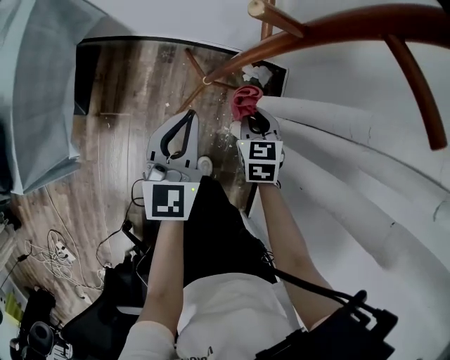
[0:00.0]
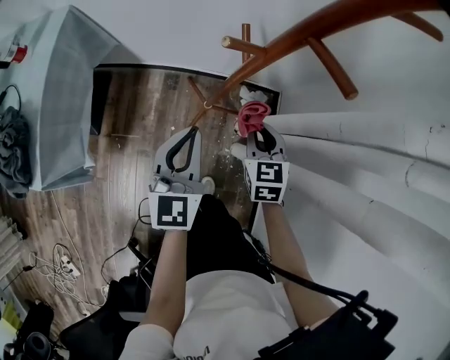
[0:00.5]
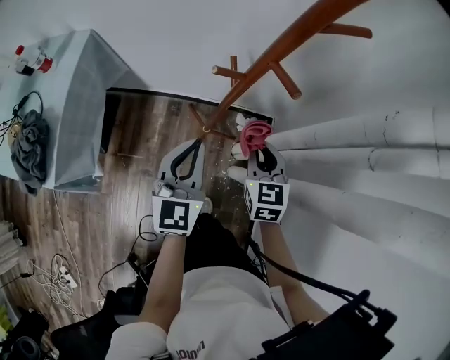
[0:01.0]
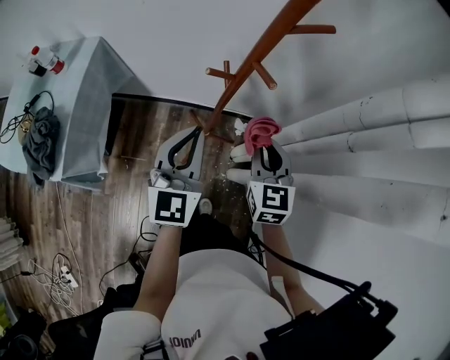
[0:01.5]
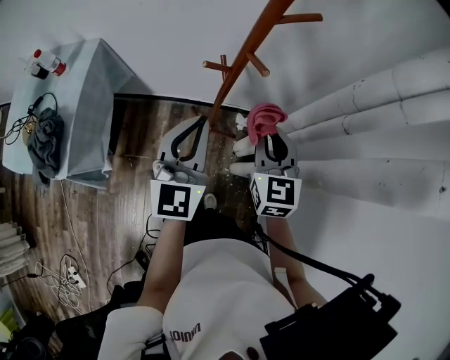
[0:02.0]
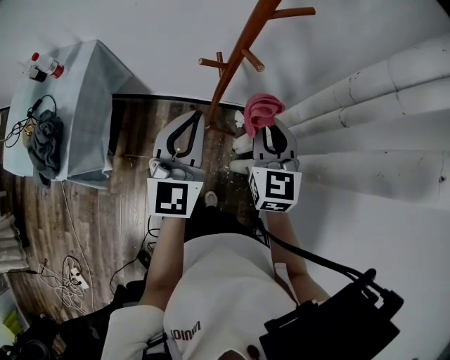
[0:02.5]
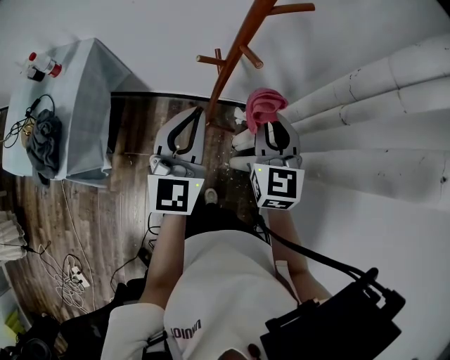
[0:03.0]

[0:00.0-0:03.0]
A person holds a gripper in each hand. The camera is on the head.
0:00.0 to 0:01.5: Both grippers move upward, some 25 cm. The left gripper changes its angle by roughly 20 degrees. The right gripper turns by approximately 30 degrees.
0:01.5 to 0:03.0: The right gripper moves upward, about 5 cm.

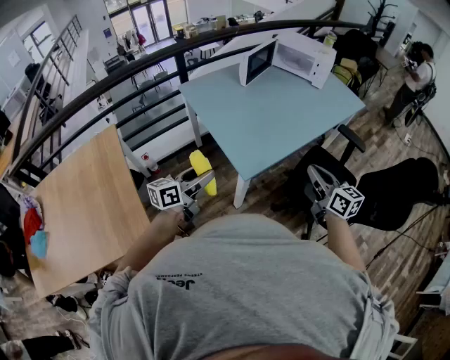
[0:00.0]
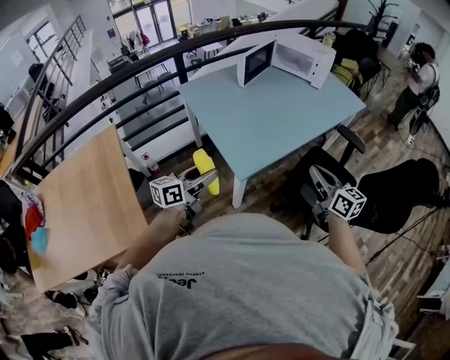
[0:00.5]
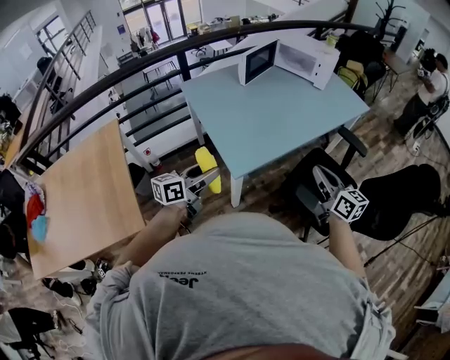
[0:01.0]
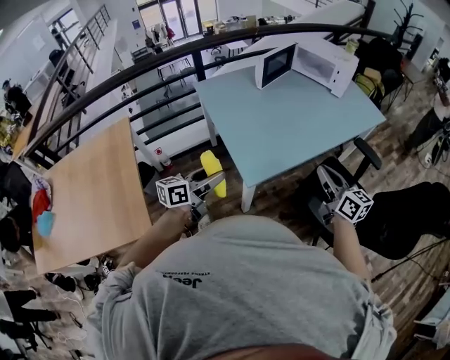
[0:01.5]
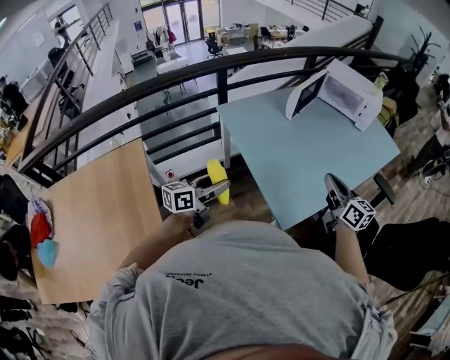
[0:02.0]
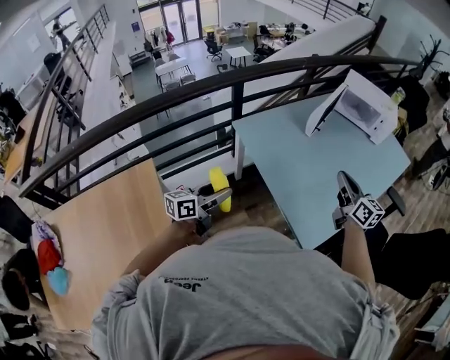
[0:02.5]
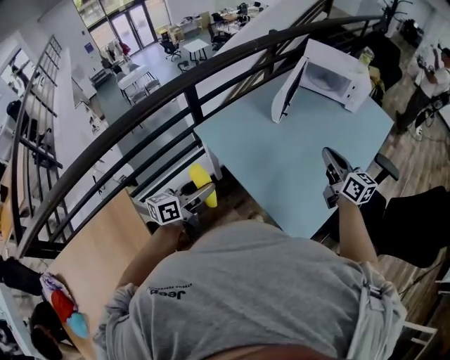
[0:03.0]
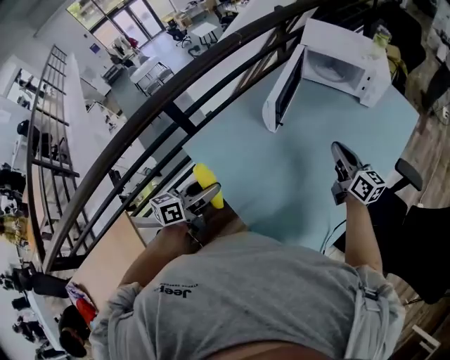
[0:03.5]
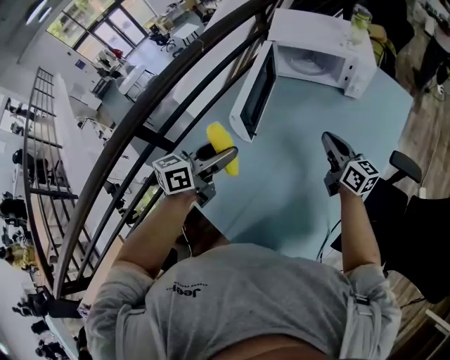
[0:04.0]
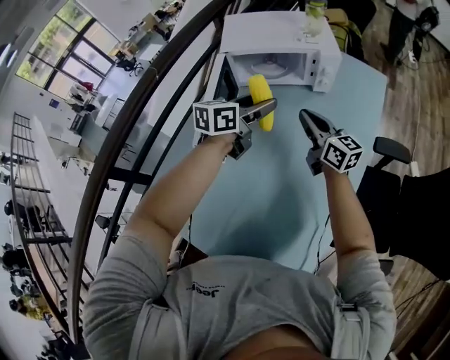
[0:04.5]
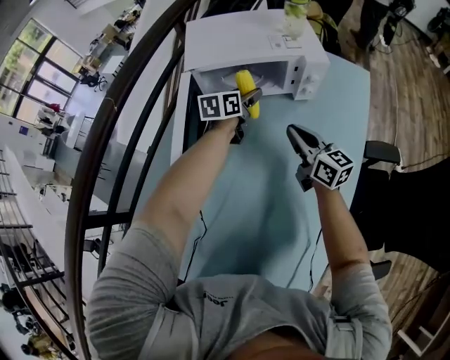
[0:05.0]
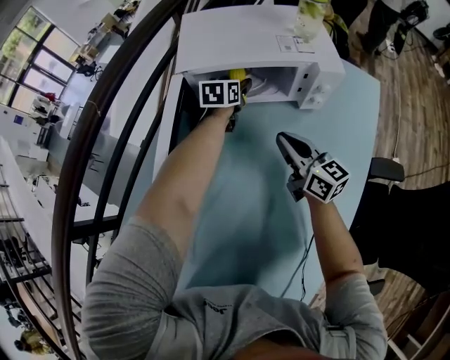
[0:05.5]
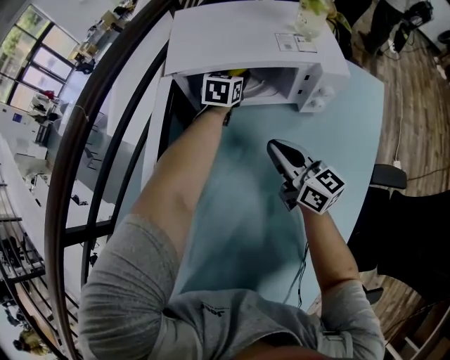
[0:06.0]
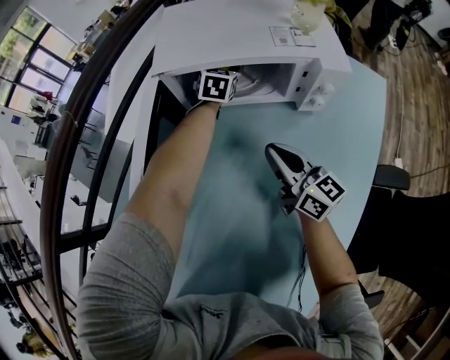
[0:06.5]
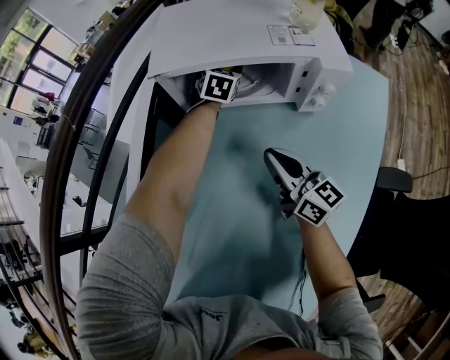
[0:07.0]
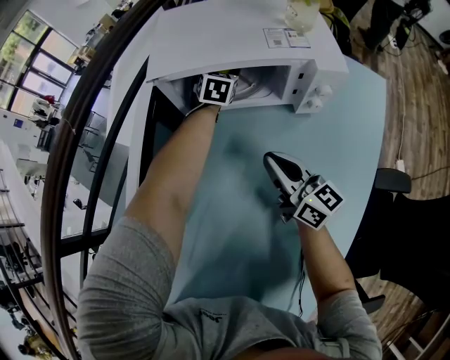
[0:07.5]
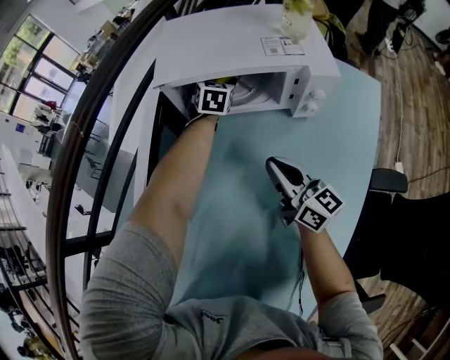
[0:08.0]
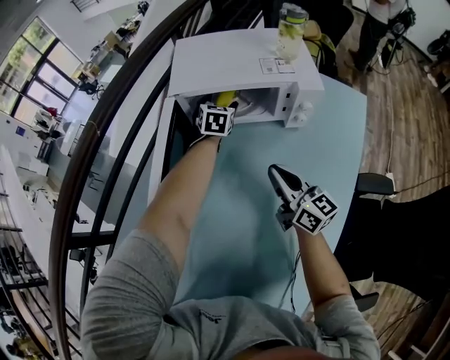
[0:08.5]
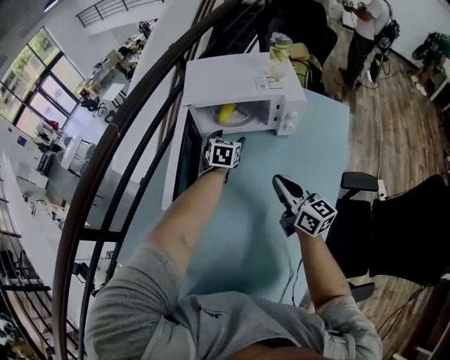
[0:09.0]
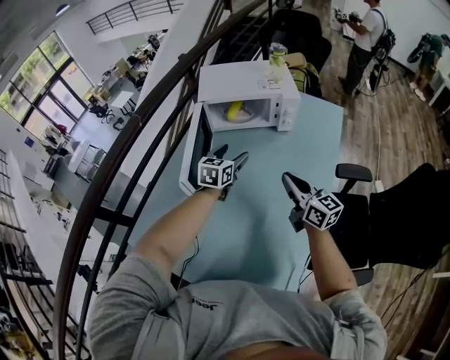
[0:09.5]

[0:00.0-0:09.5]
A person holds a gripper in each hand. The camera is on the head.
0:00.0 to 0:02.0: The grippers both shift forward and to the left by about 20 cm.
0:02.0 to 0:04.0: The pair of grippers is taken forward, about 40 cm. The left gripper changes its angle by about 20 degrees.
0:04.0 to 0:05.5: The left gripper is displaced forward and downward by approximately 50 cm, and changes its angle by some 20 degrees; the right gripper moves forward, about 15 cm.
0:05.5 to 0:07.5: The left gripper is displaced forward by about 10 cm, and swivels about 30 degrees.
0:07.5 to 0:09.5: The left gripper travels backward by approximately 35 cm, and swivels approximately 20 degrees; the right gripper goes about 25 cm backward and upward.

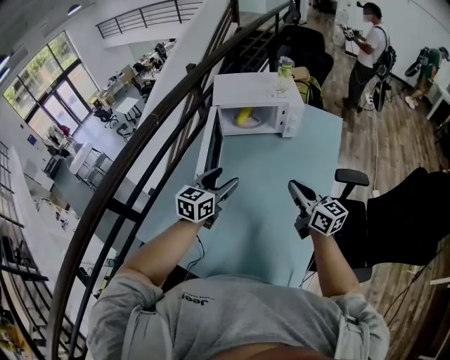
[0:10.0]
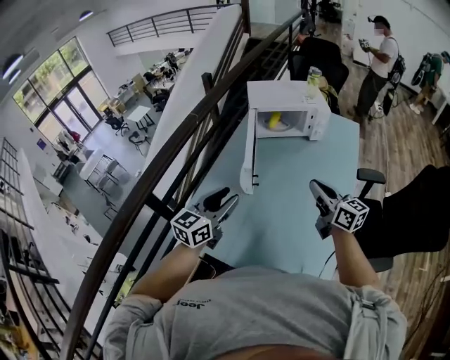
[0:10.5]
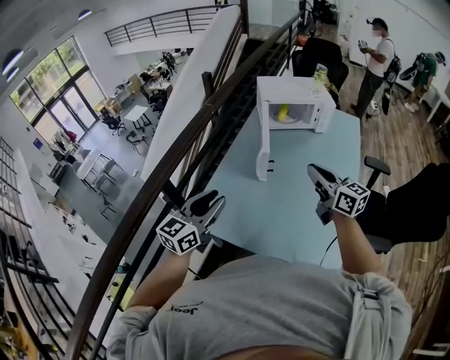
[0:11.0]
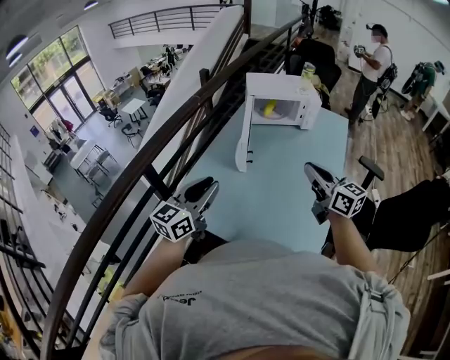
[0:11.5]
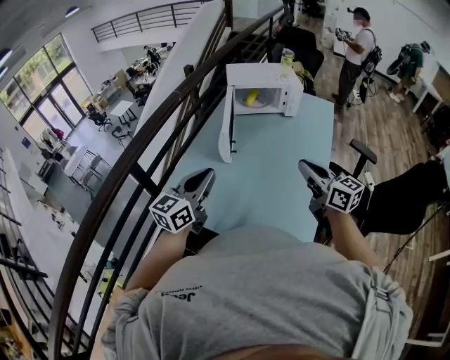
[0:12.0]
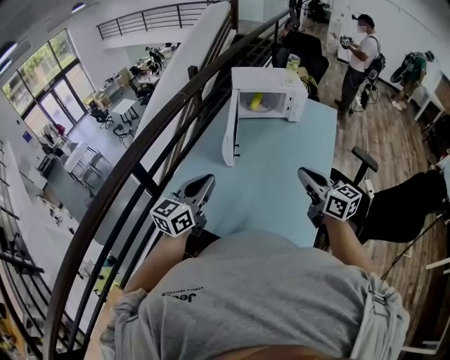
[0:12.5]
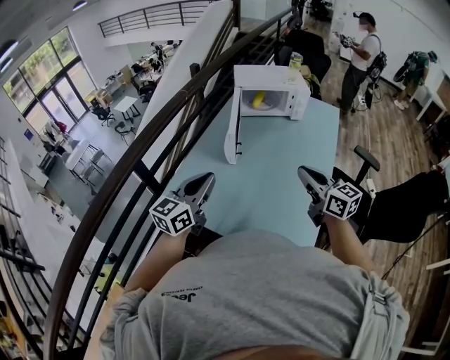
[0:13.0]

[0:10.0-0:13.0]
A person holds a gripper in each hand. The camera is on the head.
0:10.0 to 0:11.5: The right gripper travels backward, to the left and upward by some 20 cm; the left gripper heads backward, to the left and upward, covering roughly 30 cm, and closes its fingers.
0:11.5 to 0:13.0: The grippers move only a little.

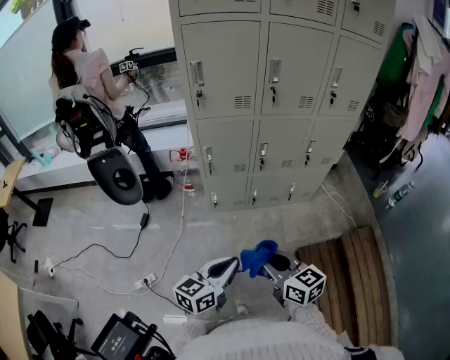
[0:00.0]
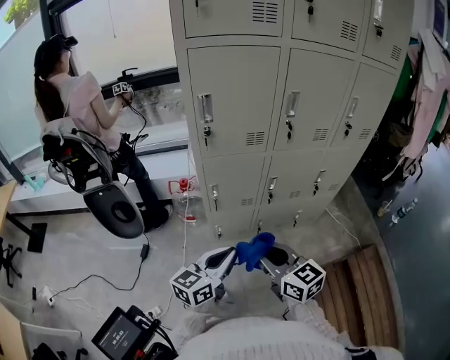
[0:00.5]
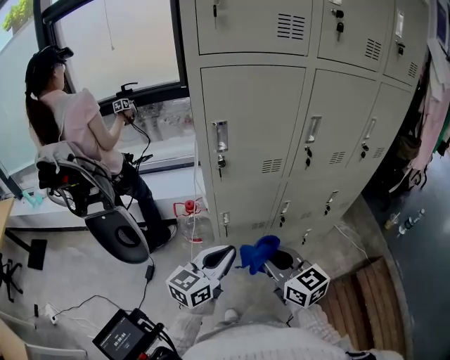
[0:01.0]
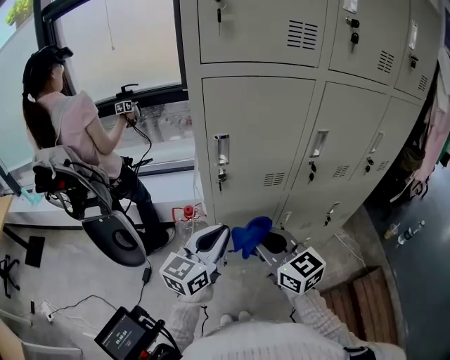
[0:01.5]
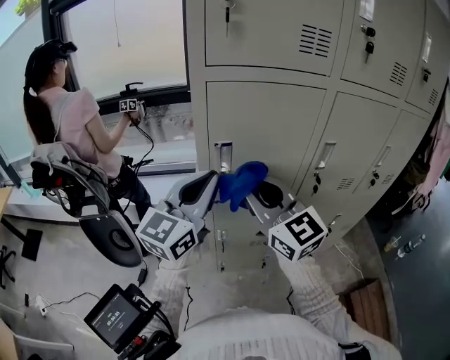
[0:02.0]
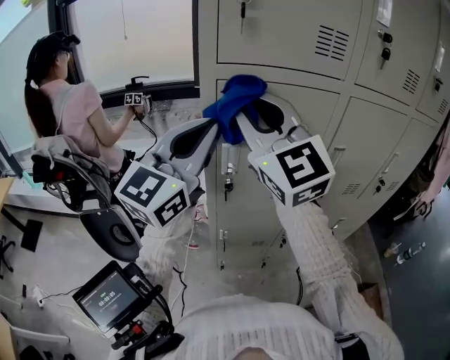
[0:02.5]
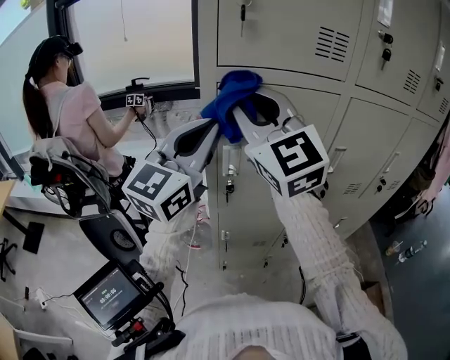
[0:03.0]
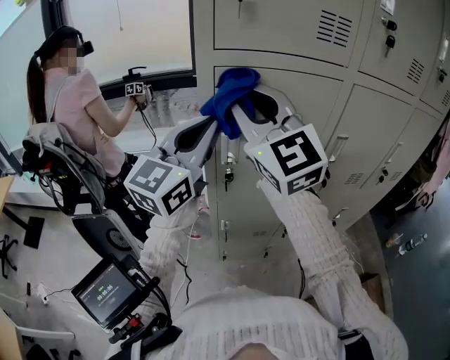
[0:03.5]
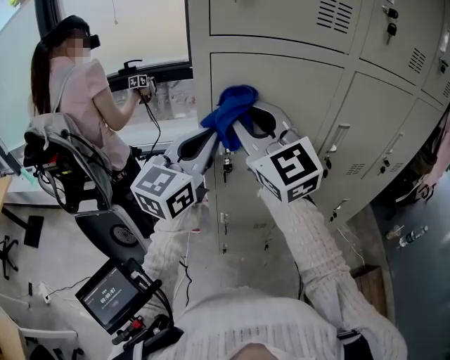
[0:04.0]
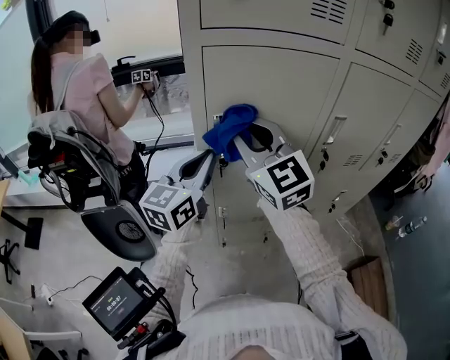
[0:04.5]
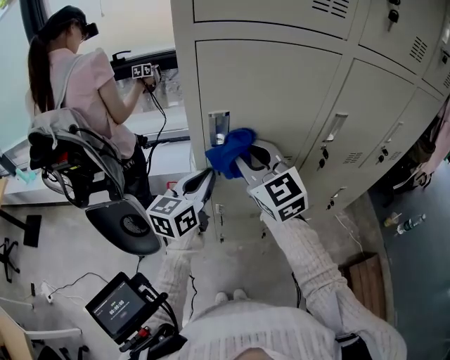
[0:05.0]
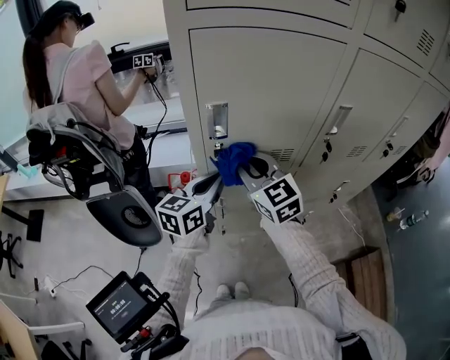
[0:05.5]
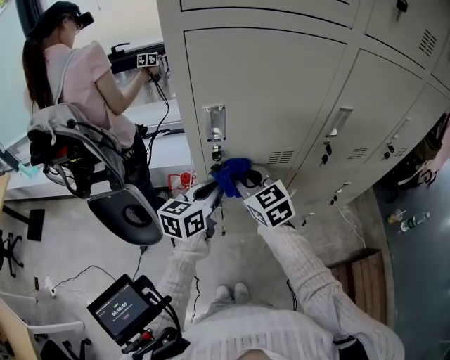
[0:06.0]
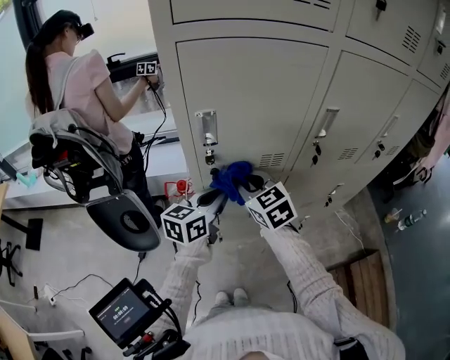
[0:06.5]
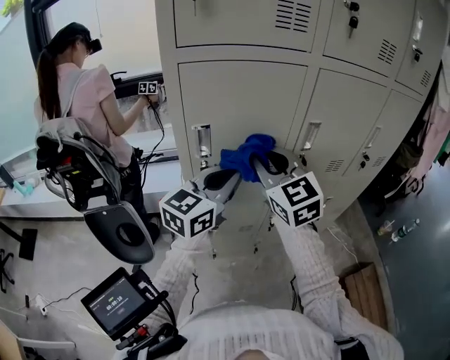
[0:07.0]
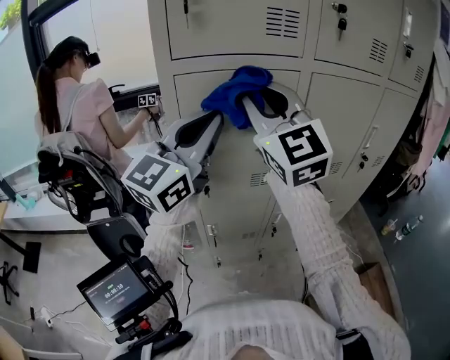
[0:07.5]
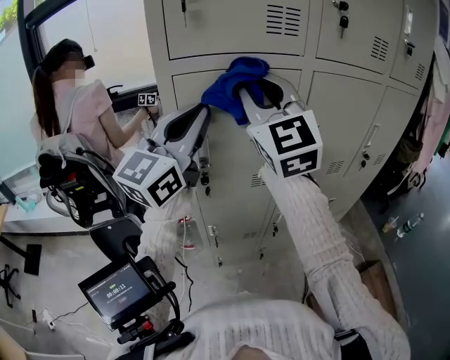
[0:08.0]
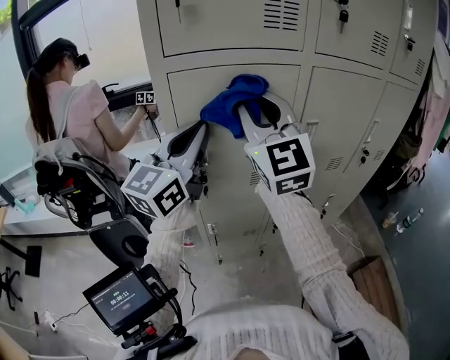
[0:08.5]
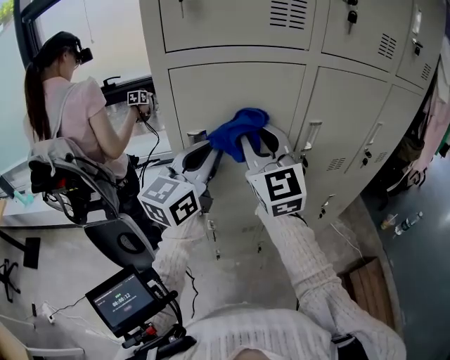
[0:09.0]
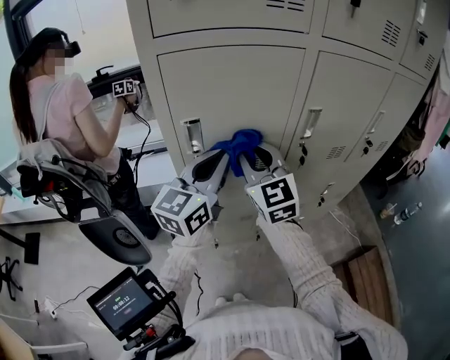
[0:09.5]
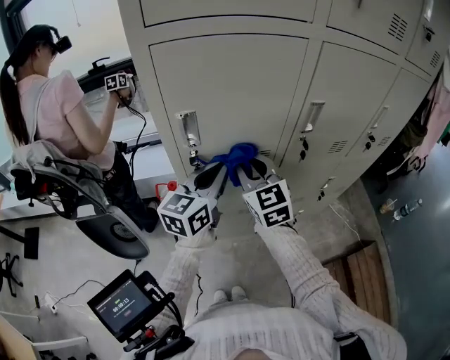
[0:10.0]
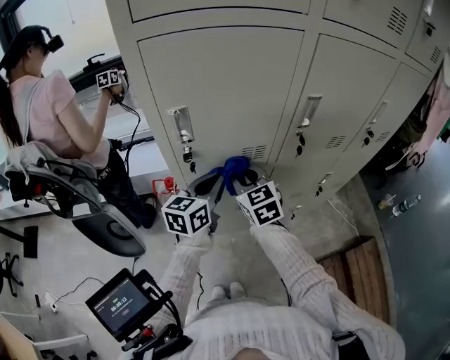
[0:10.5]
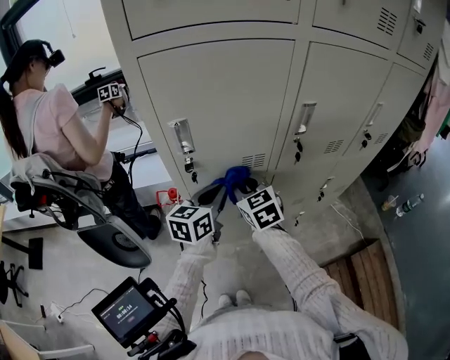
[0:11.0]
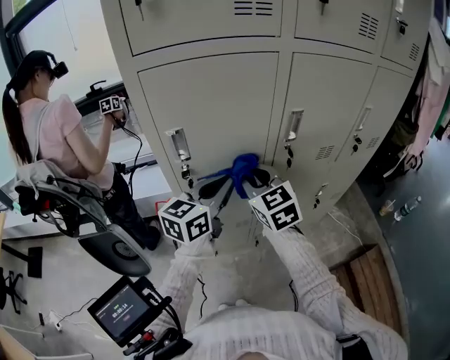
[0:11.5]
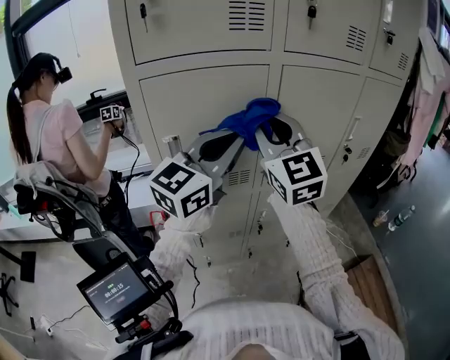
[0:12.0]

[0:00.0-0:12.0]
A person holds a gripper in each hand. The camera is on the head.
0:00.0 to 0:02.0: Both grippers are carried forward, roughly 50 cm. The two grippers go some 30 cm upward. The left gripper rotates approximately 40 degrees. The right gripper rotates approximately 40 degrees.
0:02.0 to 0:04.0: The right gripper shifts approximately 10 cm forward and upward. The left gripper is displaced forward by some 5 cm, and goes upward and returns, approximately 10 cm each way.
0:04.0 to 0:06.0: The grippers both shift downward by some 25 cm. The right gripper swivels about 30 degrees. Meanwhile the left gripper turns by approximately 30 degrees.
0:06.0 to 0:08.0: The two grippers go approximately 35 cm upward. The right gripper angles its fingers upward, by approximately 40 degrees; the left gripper tilts its fingers roughly 30 degrees upward.
0:08.0 to 0:10.0: Both grippers travel together downward, some 25 cm. The right gripper rotates some 30 degrees. The left gripper rotates approximately 30 degrees.
0:10.0 to 0:12.0: The right gripper goes roughly 20 cm upward, and changes its angle by some 20 degrees; the left gripper moves upward and to the right, roughly 20 cm, and changes its angle by about 30 degrees.
